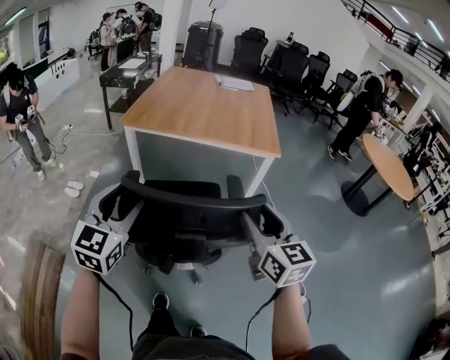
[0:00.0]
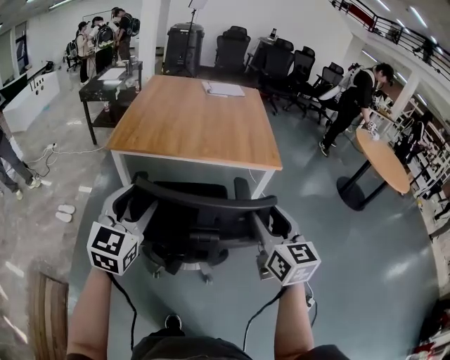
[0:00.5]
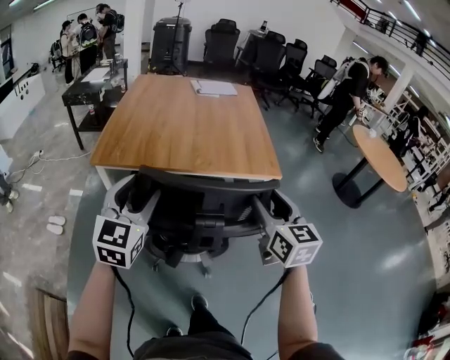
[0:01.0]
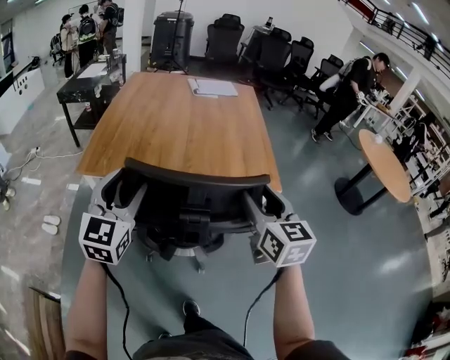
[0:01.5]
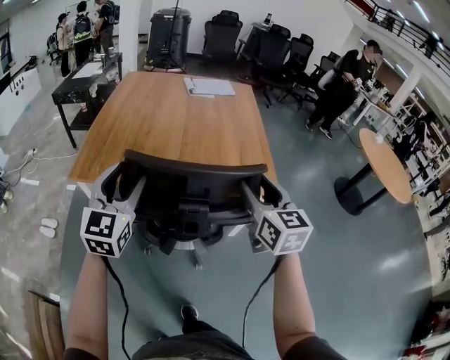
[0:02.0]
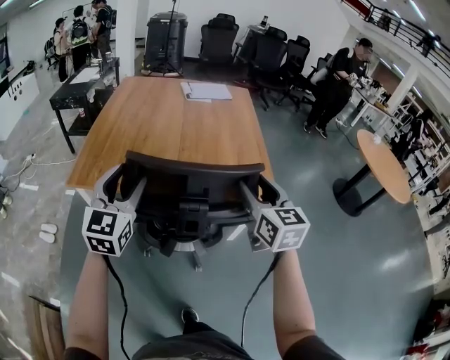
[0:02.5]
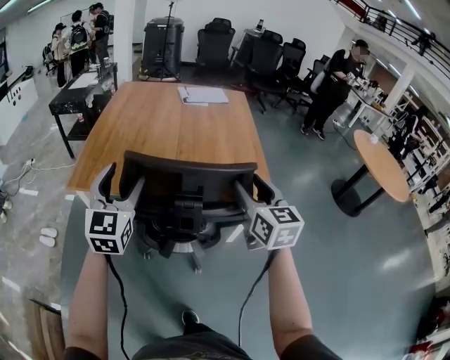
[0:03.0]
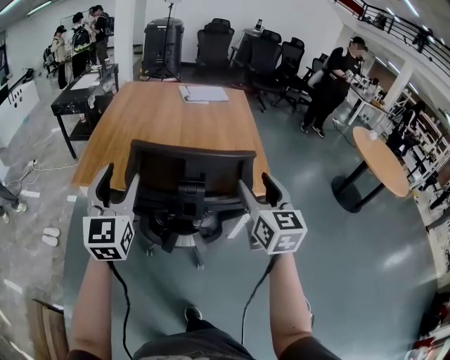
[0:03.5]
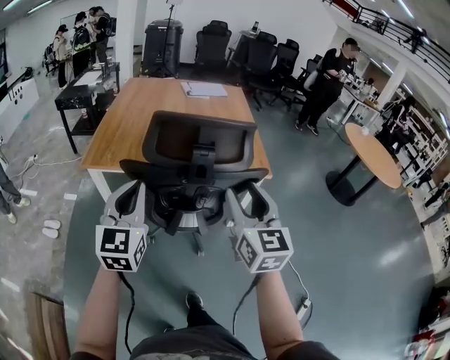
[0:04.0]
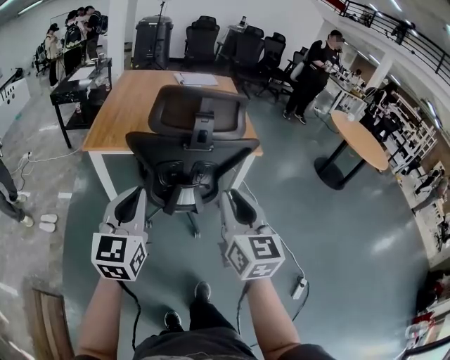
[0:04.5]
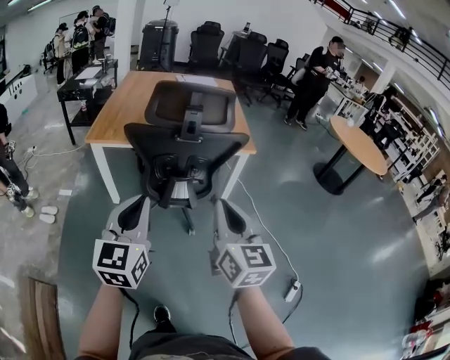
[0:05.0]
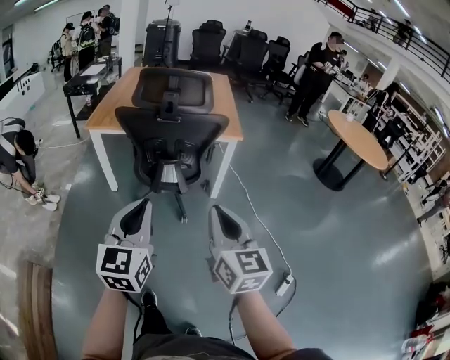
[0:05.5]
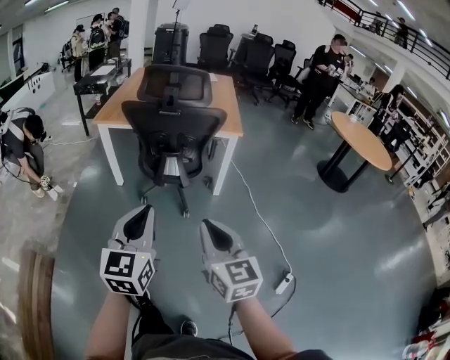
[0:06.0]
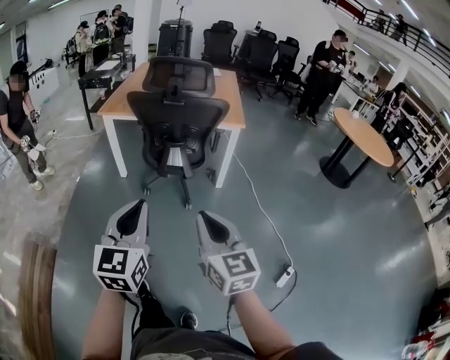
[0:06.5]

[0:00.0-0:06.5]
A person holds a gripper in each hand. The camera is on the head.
0:00.0 to 0:02.0: The grippers both shift forward by approximately 40 cm.
0:02.0 to 0:04.5: The grippers both shift backward by approximately 30 cm. The left gripper closes. The right gripper closes.
0:04.5 to 0:06.5: The left gripper is displaced backward and to the right by about 35 cm. Meanwhile the right gripper moves backward, roughly 30 cm.

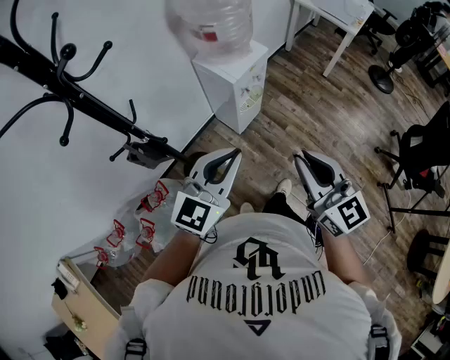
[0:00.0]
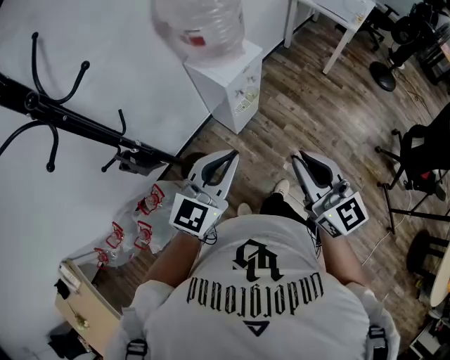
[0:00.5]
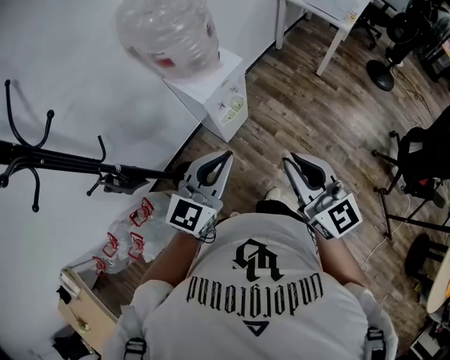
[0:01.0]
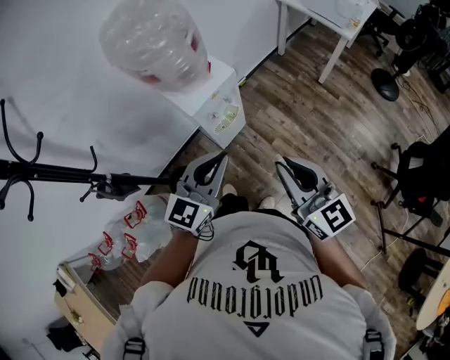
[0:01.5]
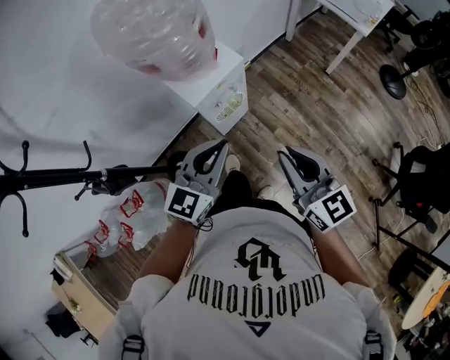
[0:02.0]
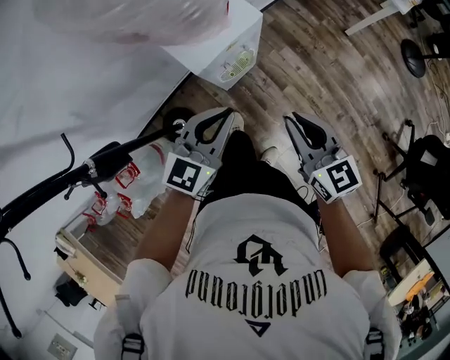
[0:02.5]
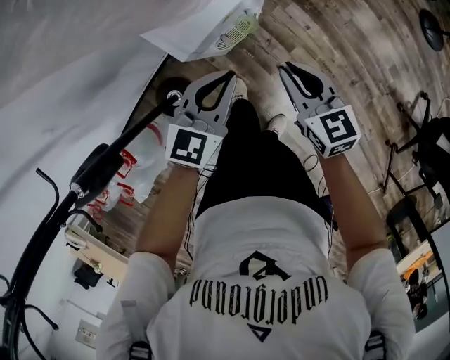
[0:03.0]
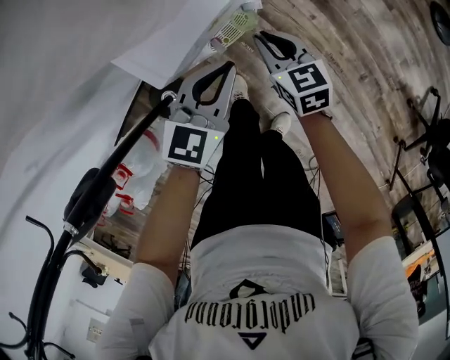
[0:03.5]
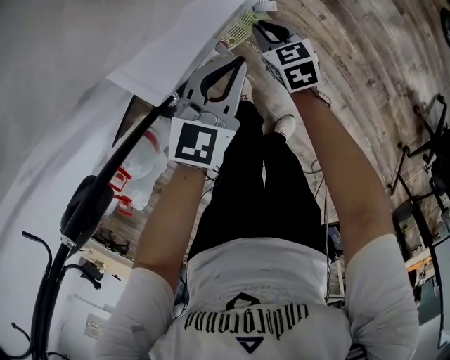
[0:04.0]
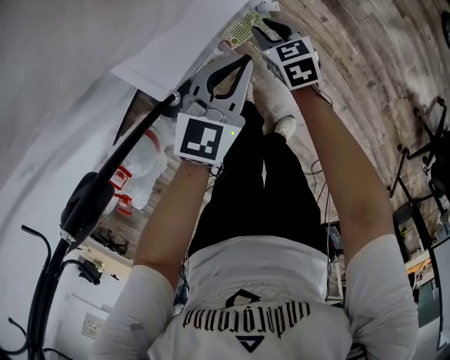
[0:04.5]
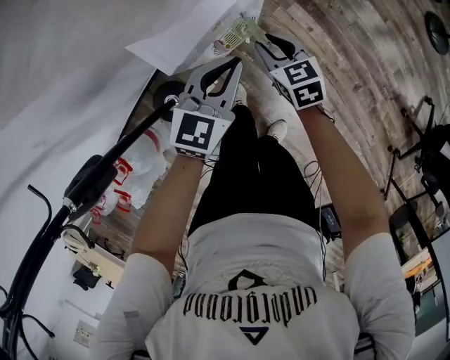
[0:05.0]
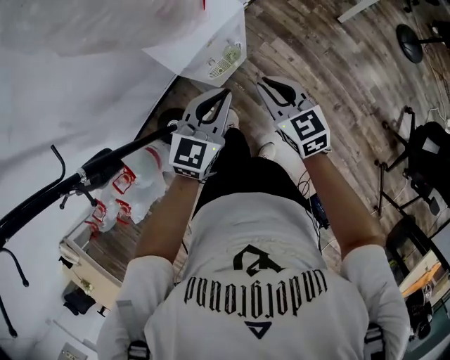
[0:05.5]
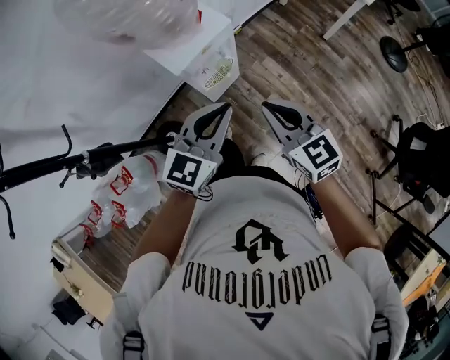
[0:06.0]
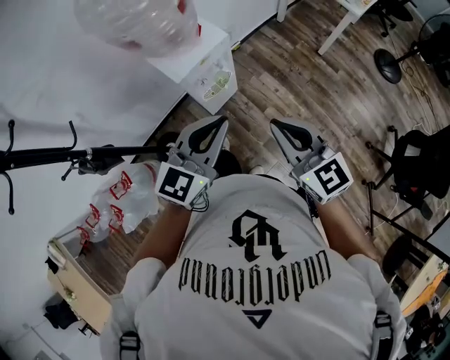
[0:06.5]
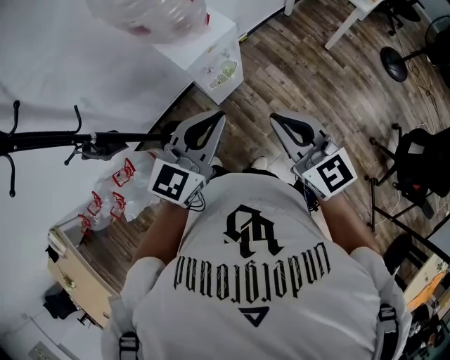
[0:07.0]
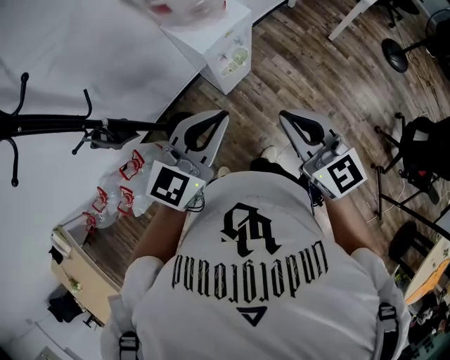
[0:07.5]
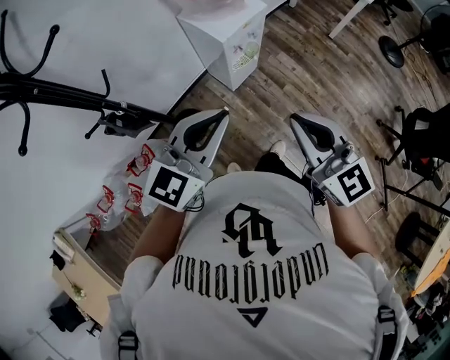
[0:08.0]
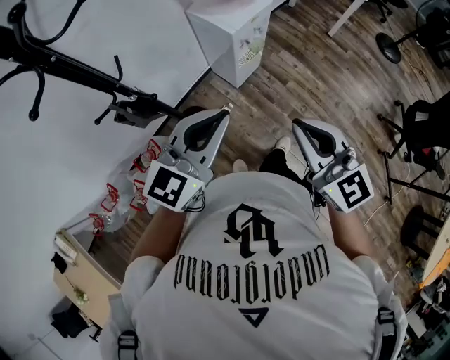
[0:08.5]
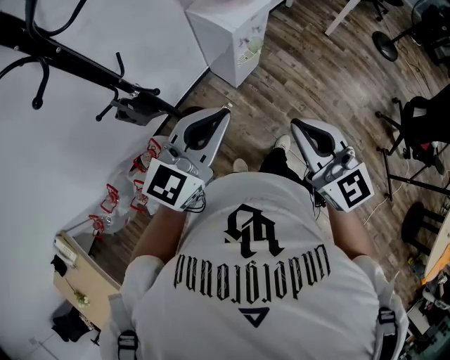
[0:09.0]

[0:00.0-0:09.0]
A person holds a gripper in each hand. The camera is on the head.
0:00.0 to 0:02.0: The grippers both shift forward and to the right by roughly 30 cm.
0:02.0 to 0:04.5: Both grippers travel together downward and forward, about 60 cm. The left gripper changes its angle by roughly 20 degrees; the right gripper tilts its fingers approximately 40 degrees downward.
0:04.5 to 0:07.0: Both grippers move upward and backward, approximately 60 cm. The right gripper angles its fingers upward, by approximately 40 degrees, and closes; the left gripper rotates about 20 degrees.
0:07.0 to 0:09.0: The right gripper travels backward and to the left by some 30 cm. Meanwhile the left gripper heads to the left and backward, covering roughly 30 cm.

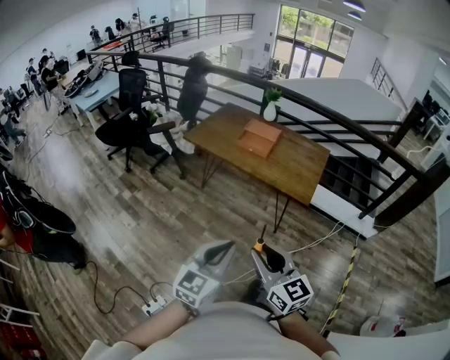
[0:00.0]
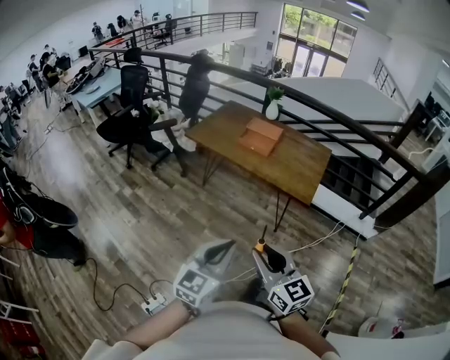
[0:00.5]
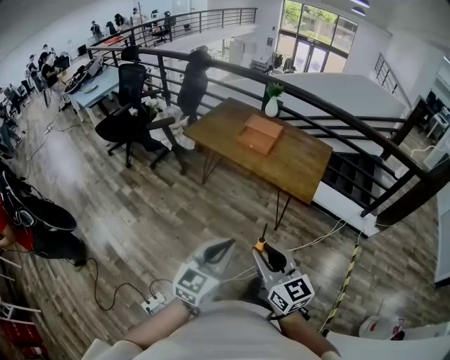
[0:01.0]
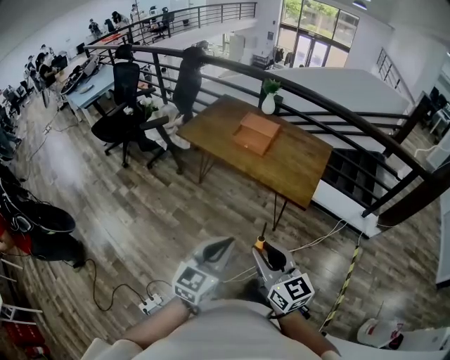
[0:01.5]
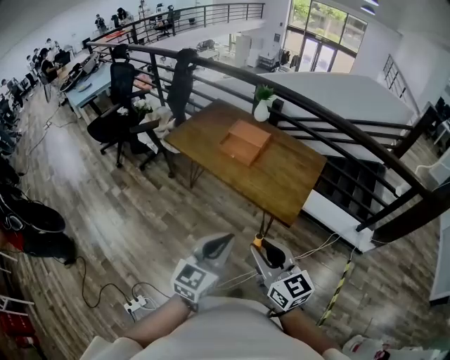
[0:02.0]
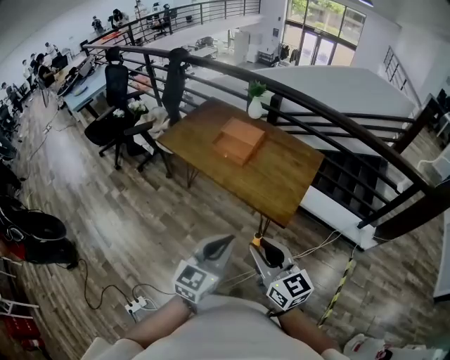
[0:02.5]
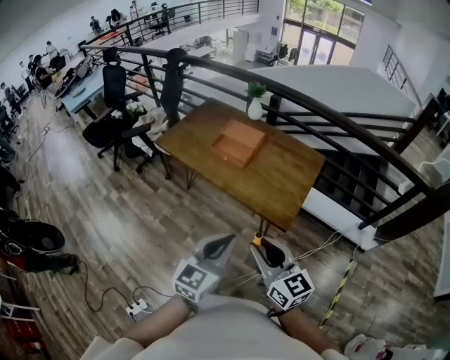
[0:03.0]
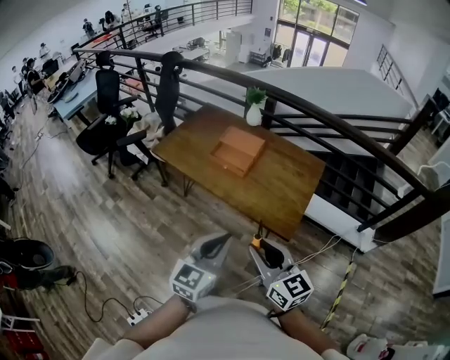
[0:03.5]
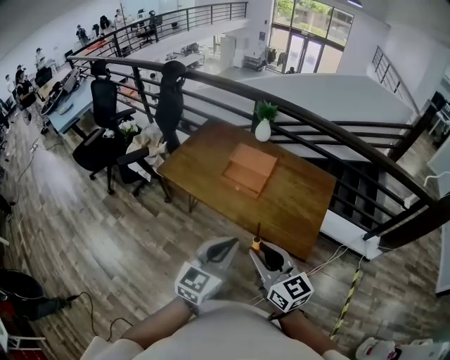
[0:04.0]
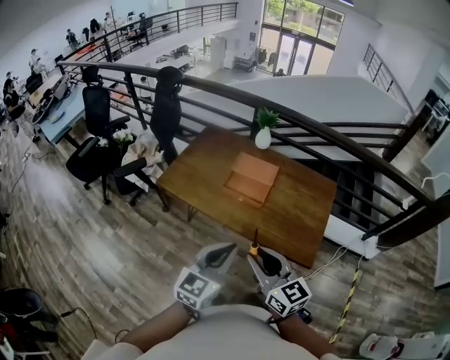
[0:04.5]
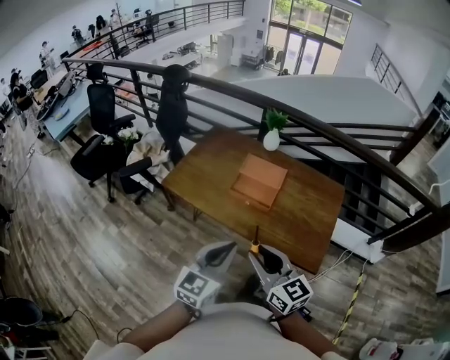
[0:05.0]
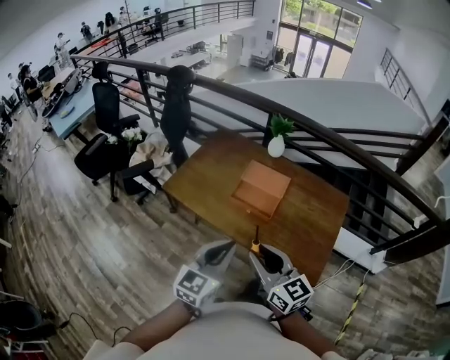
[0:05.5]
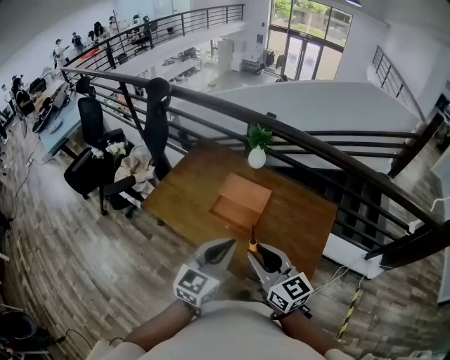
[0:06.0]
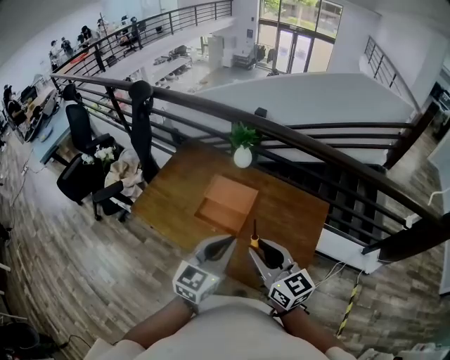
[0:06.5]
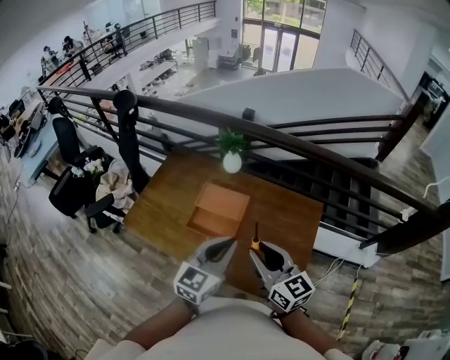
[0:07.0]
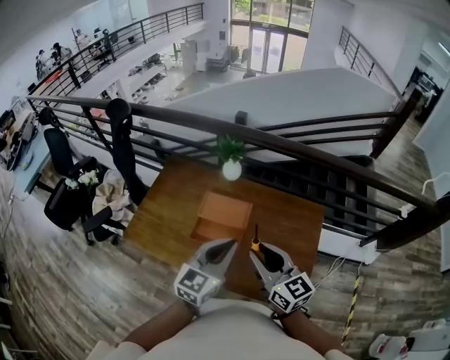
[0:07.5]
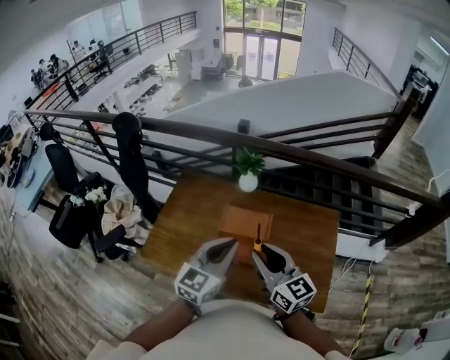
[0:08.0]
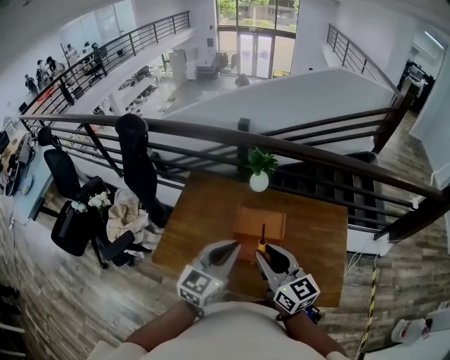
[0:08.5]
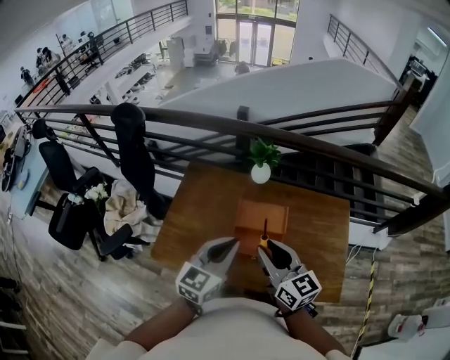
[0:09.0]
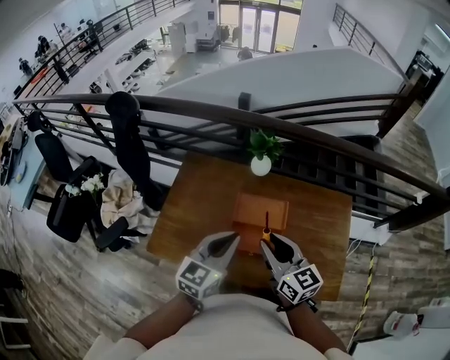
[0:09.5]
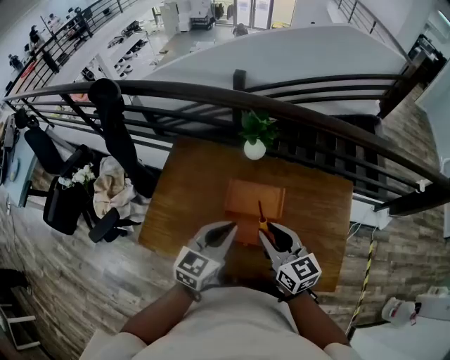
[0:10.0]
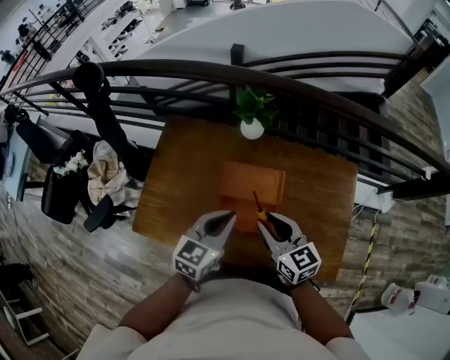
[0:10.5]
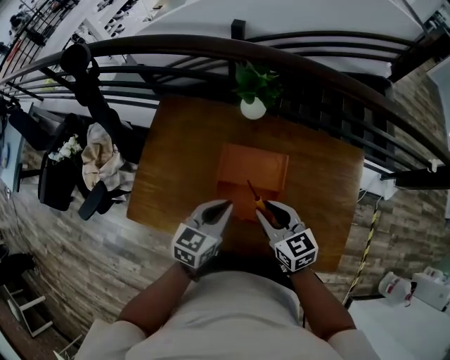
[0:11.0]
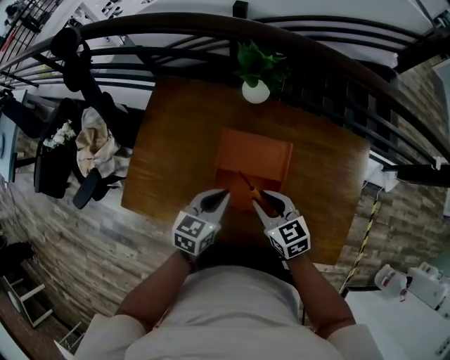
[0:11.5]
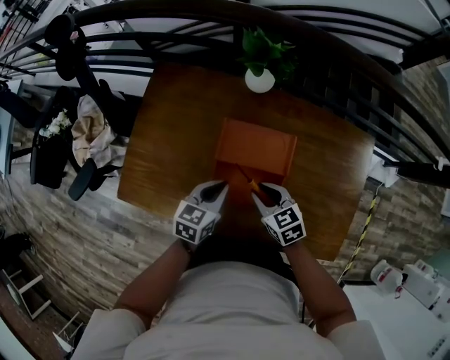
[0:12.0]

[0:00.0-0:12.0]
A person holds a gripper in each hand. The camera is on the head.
0:00.0 to 0:02.0: The two grippers go approximately 25 cm forward and to the right.
0:02.0 to 0:04.0: The two grippers go about 25 cm forward.
0:04.0 to 0:06.0: Both grippers travel together forward, approximately 25 cm.
0:06.0 to 0:08.0: The two grippers go some 20 cm forward.
0:08.0 to 0:10.0: The left gripper shifts some 15 cm downward, forward and to the left. The right gripper goes approximately 15 cm downward and forward.
0:10.0 to 0:12.0: The grippers both shift downward by about 25 cm. The right gripper turns by about 30 degrees. Meanwhile the left gripper swivels approximately 20 degrees.
